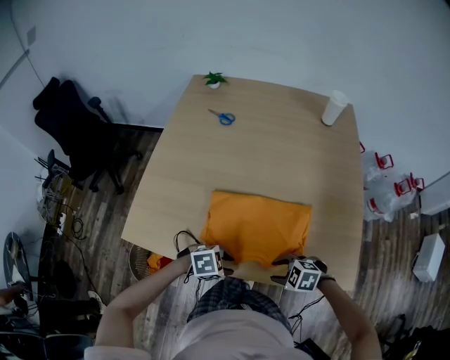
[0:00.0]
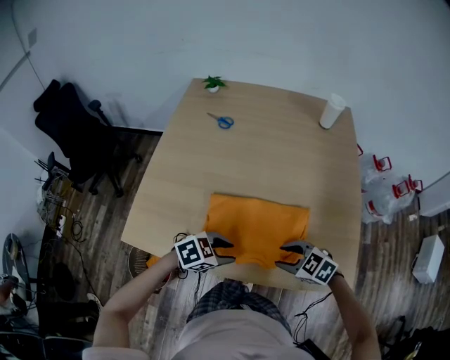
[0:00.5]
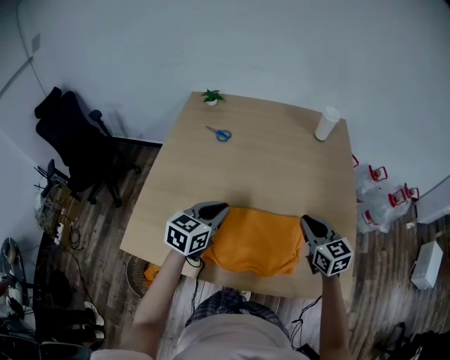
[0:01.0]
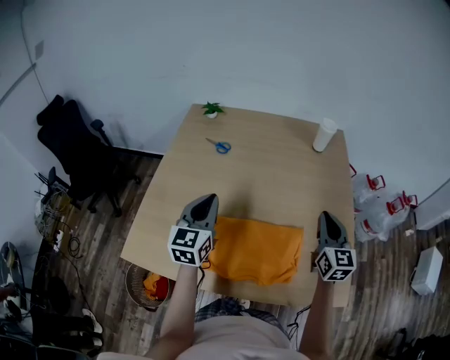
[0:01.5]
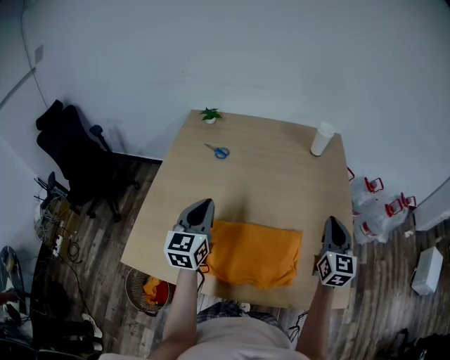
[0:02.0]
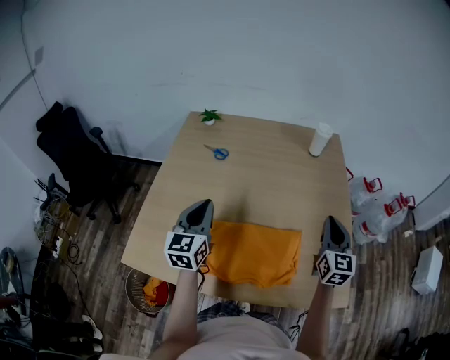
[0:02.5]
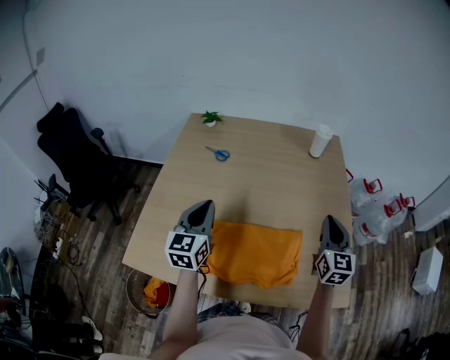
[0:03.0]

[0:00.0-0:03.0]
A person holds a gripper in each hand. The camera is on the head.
0:00.0 to 0:01.5: The left gripper moves upward, roughly 25 cm, points its fingers approximately 50 degrees further upward, and closes; the right gripper shifts by approximately 35 cm, tips its fingers upward by roughly 50 degrees, and closes its fingers.
0:01.5 to 0:03.0: The grippers stay close to where they were, moving slightly.

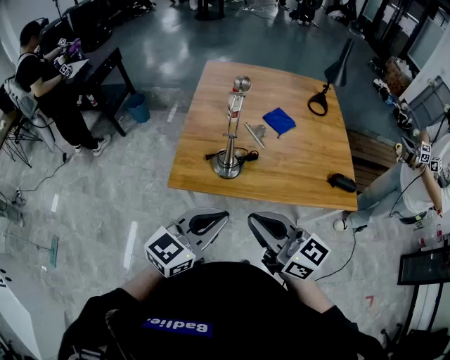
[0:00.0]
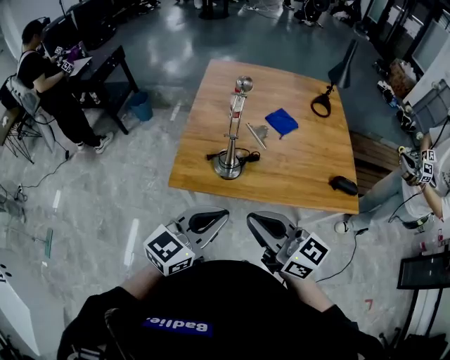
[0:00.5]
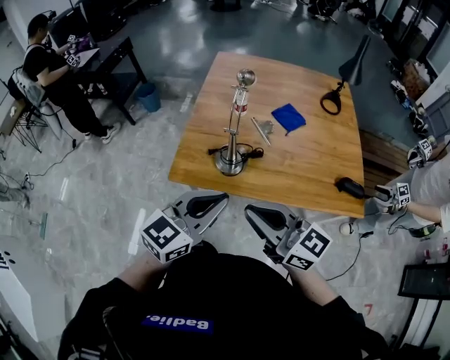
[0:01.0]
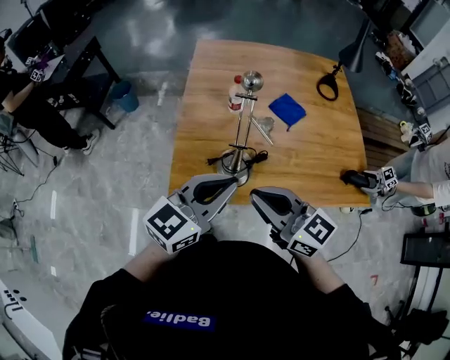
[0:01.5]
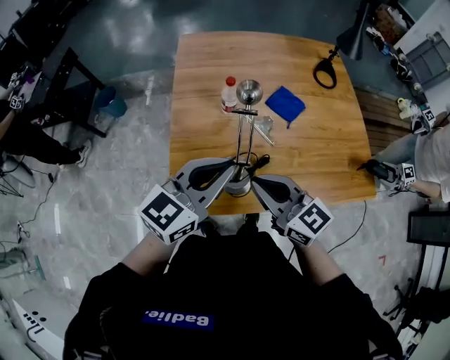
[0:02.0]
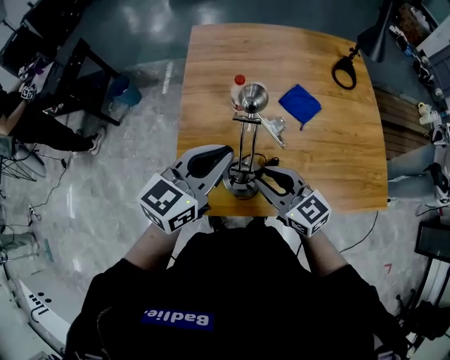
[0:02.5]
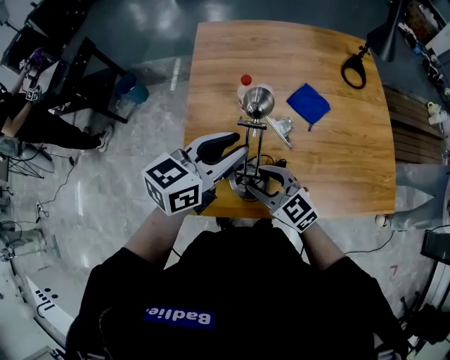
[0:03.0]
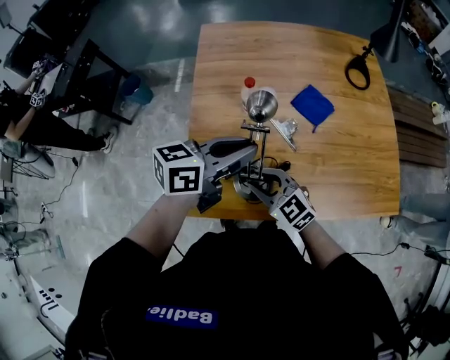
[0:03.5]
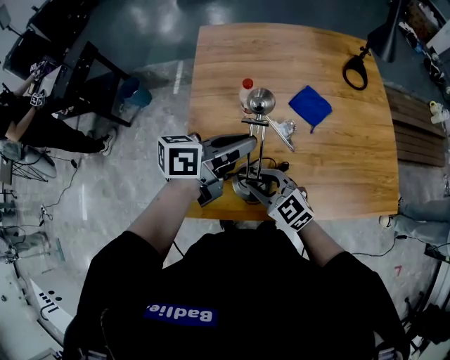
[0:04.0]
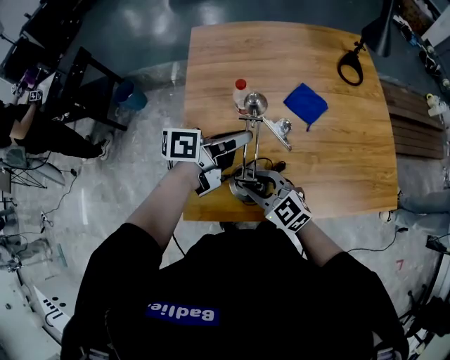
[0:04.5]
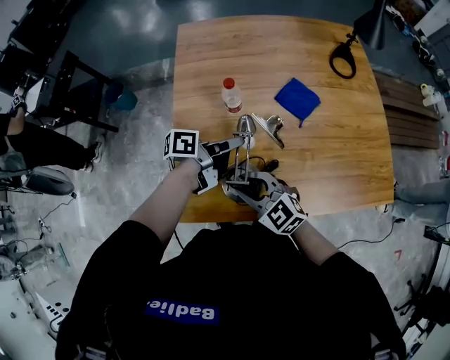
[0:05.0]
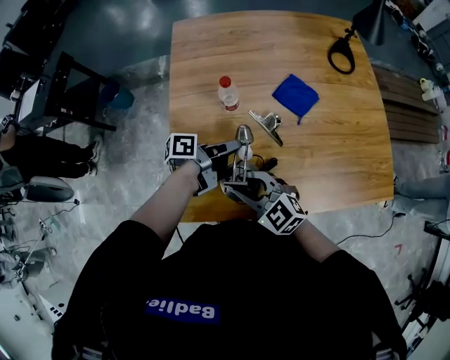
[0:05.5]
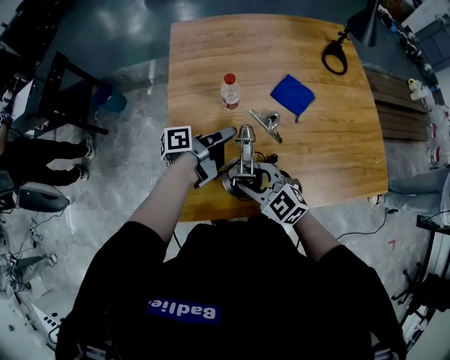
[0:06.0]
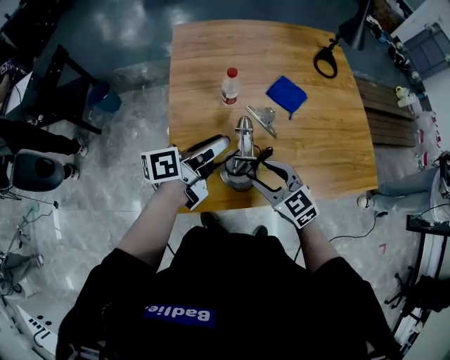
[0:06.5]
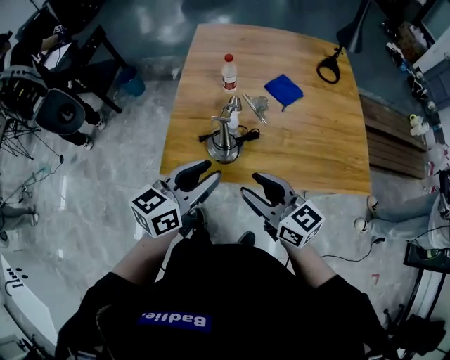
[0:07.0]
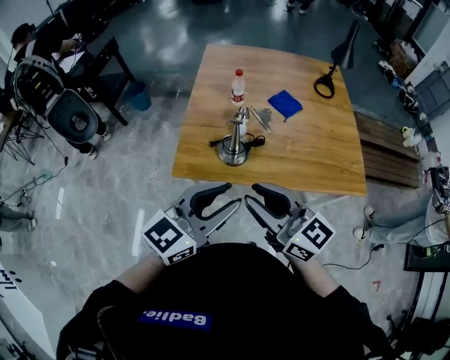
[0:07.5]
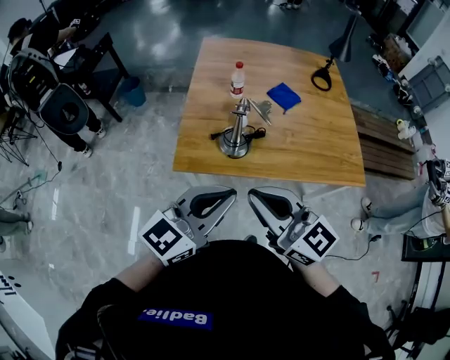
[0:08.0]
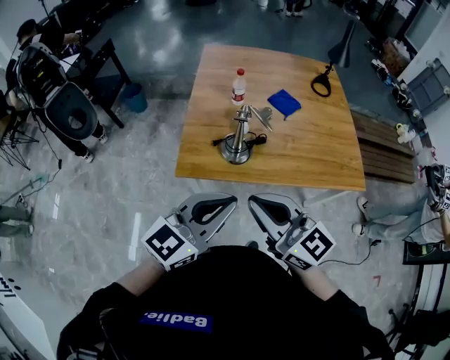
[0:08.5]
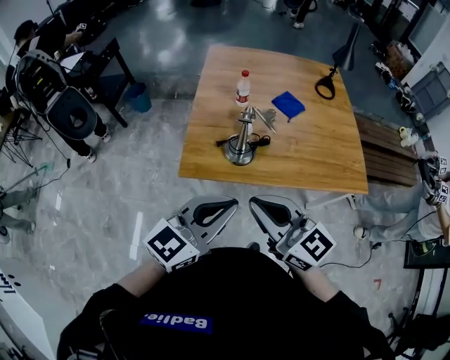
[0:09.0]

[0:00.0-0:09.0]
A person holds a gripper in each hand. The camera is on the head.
0:00.0 to 0:02.0: The two grippers go about 25 cm forward.
0:02.0 to 0:04.5: The right gripper travels downward by roughly 15 cm, turns by about 30 degrees, and opens its fingers; the left gripper goes roughly 15 cm forward and downward, and rotates around the line of its fingers by approximately 50 degrees, counterclockwise from behind.
0:04.5 to 0:07.0: The left gripper goes roughly 25 cm backward, turns by roughly 40 degrees, and opens up, while the right gripper travels backward, to the right and upward by roughly 25 cm, and turns by about 30 degrees.
0:07.0 to 0:09.0: The left gripper is displaced backward and upward by approximately 15 cm, swivels some 20 degrees, and closes its fingers; the right gripper heads backward, upward and to the left, covering approximately 20 cm, and closes up.

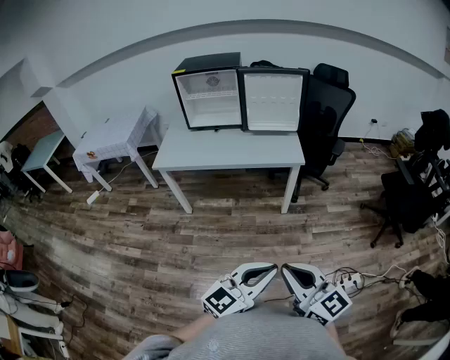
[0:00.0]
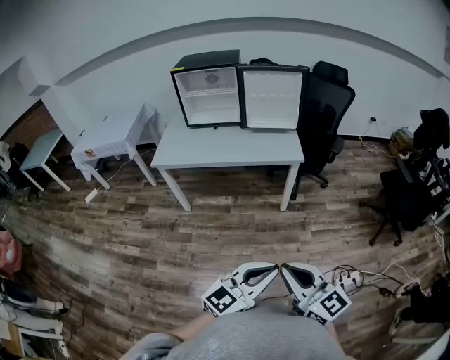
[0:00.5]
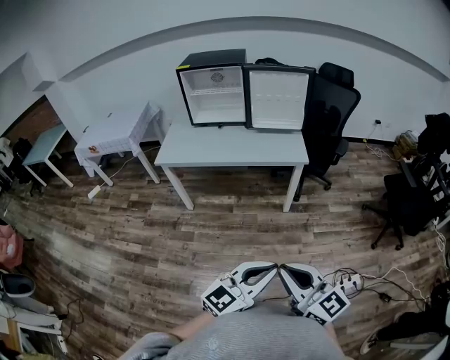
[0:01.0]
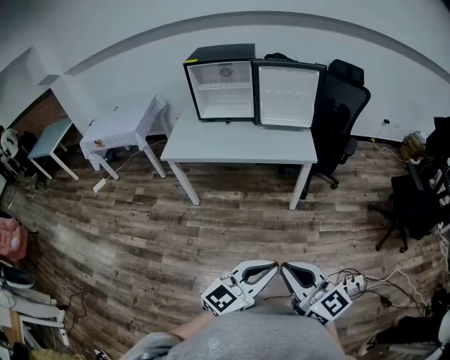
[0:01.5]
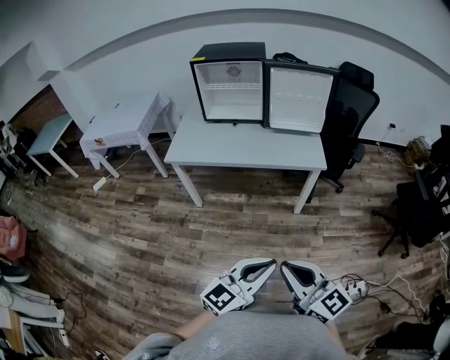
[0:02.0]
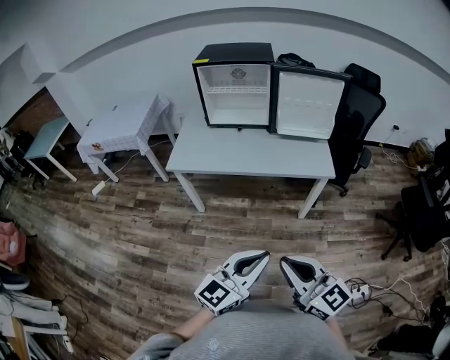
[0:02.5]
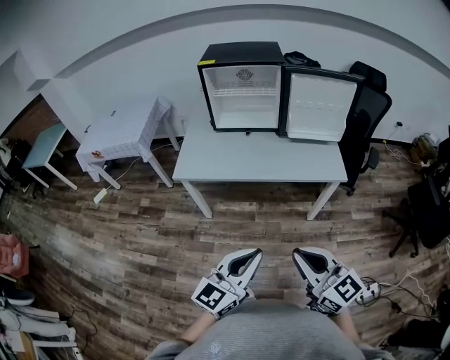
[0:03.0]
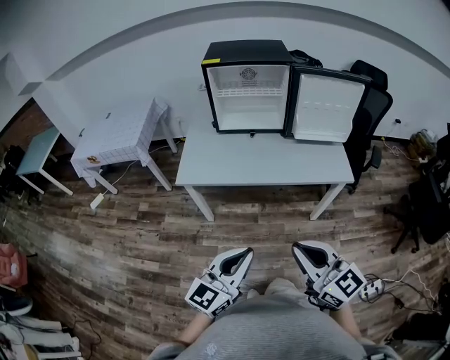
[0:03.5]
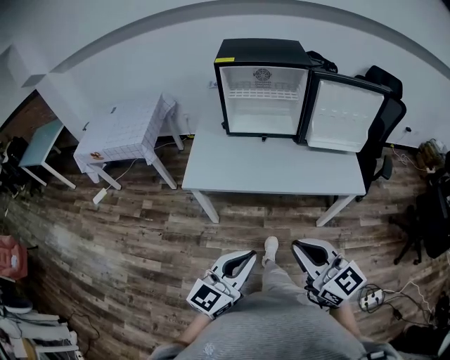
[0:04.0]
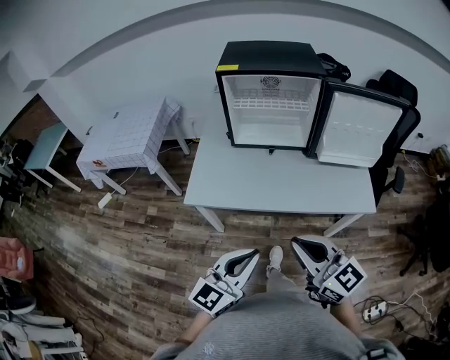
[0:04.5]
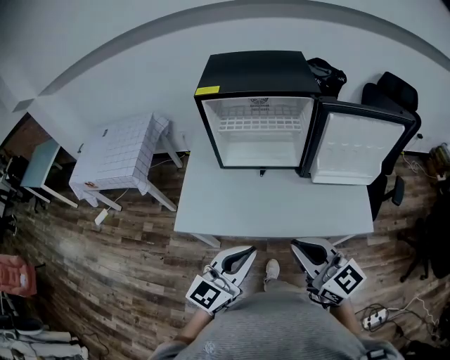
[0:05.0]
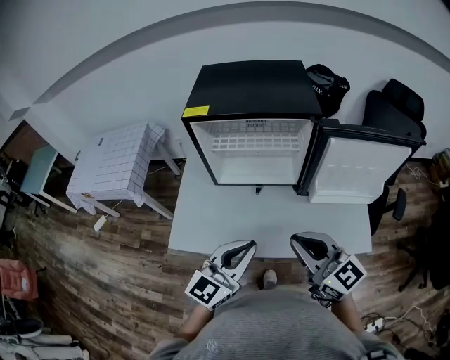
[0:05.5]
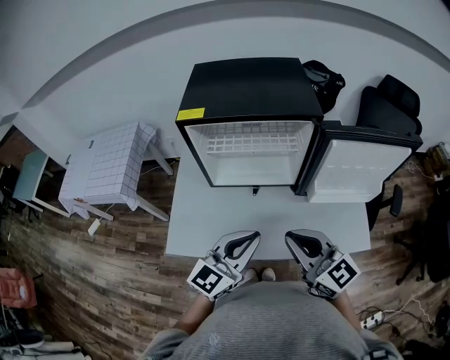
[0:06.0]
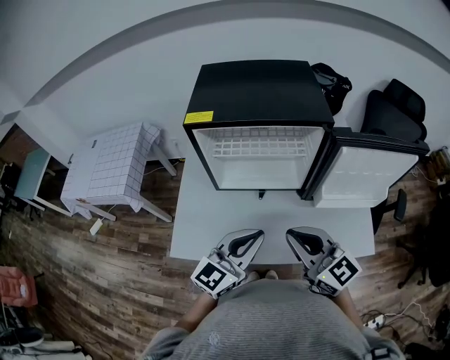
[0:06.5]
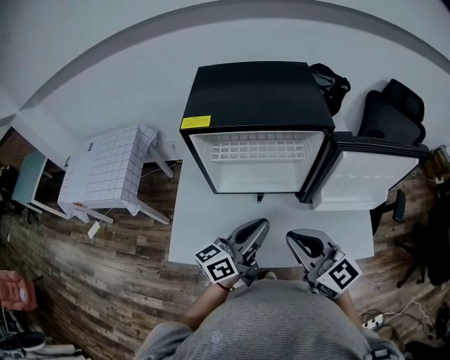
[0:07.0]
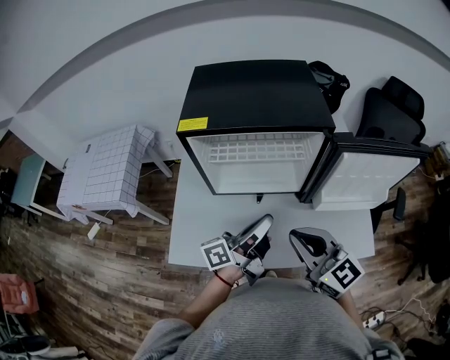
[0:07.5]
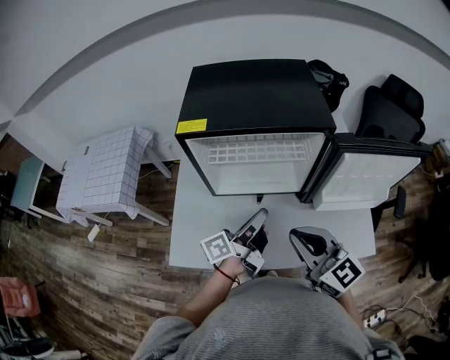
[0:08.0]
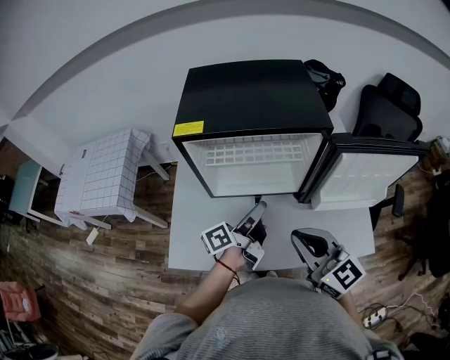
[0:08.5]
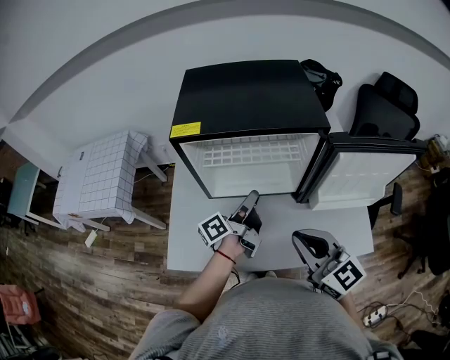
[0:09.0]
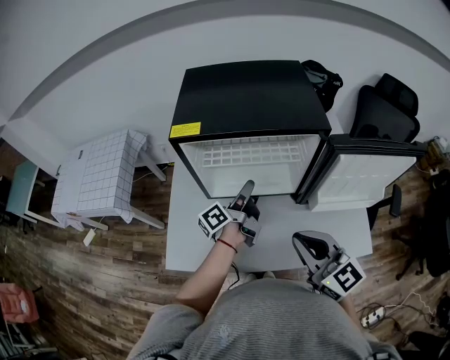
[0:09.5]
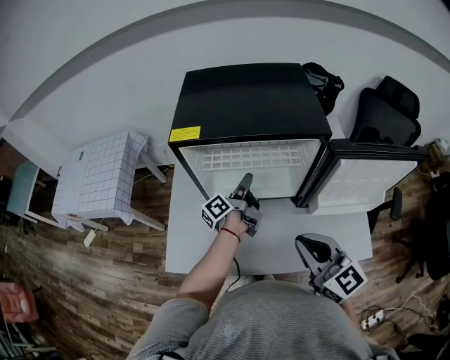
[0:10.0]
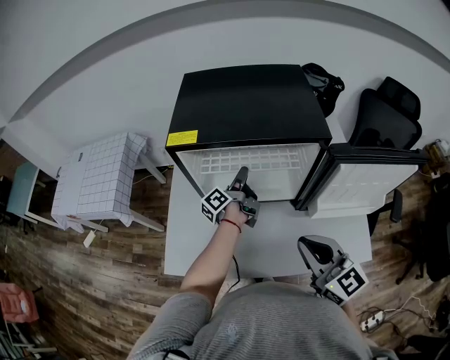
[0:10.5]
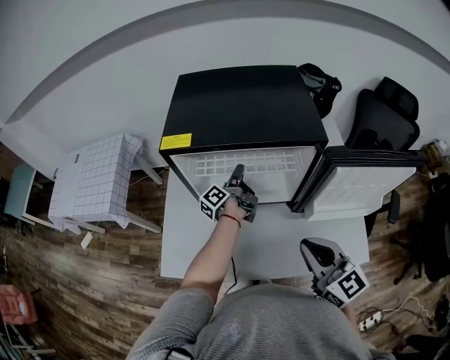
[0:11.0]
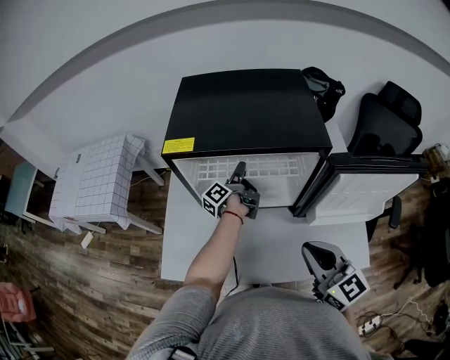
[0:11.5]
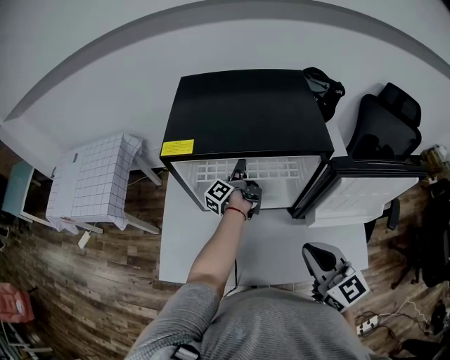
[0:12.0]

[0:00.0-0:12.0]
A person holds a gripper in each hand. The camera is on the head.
0:00.0 to 0:02.0: Both grippers travel together to the left and forward, approximately 10 cm.
0:02.0 to 0:04.0: The right gripper is displaced forward and to the left by approximately 35 cm; the left gripper goes approximately 35 cm to the left and forward.
0:04.0 to 0:06.0: Both grippers travel together forward, approximately 35 cm.
0:06.0 to 0:08.0: The left gripper shifts some 10 cm forward, and rotates around the line of its fingers by some 80 degrees, counterclockwise from behind, while the right gripper heads forward, covering approximately 5 cm.
0:08.0 to 0:10.0: The left gripper travels forward and downward by about 15 cm, and opens.
0:10.0 to 0:12.0: The right gripper ends up about 5 cm from where it was, while the left gripper is displaced forward by about 10 cm.

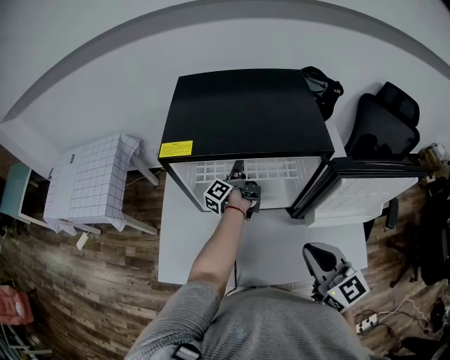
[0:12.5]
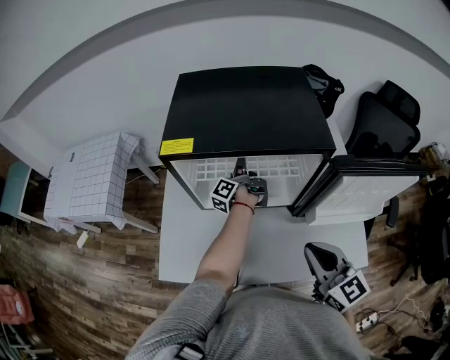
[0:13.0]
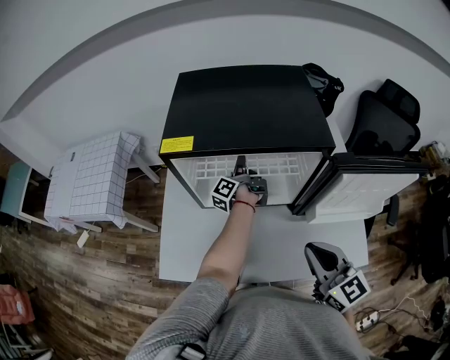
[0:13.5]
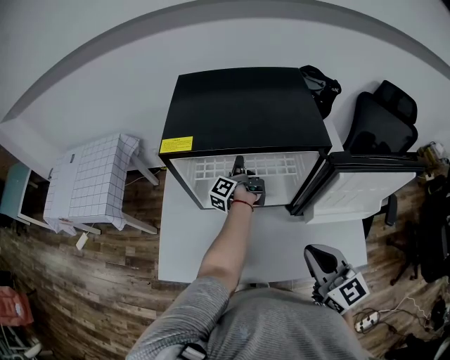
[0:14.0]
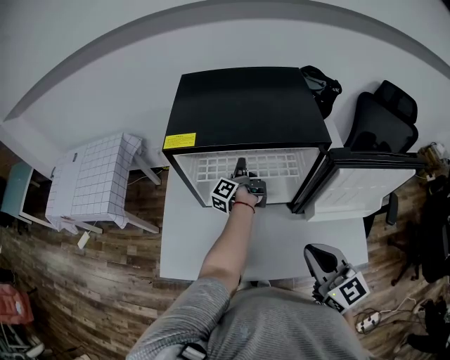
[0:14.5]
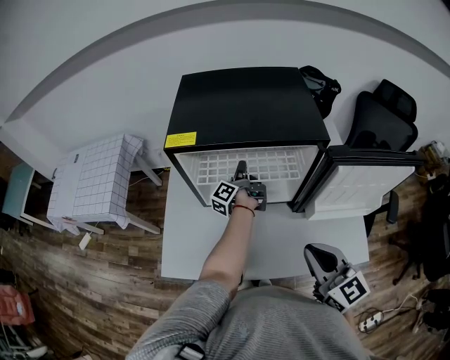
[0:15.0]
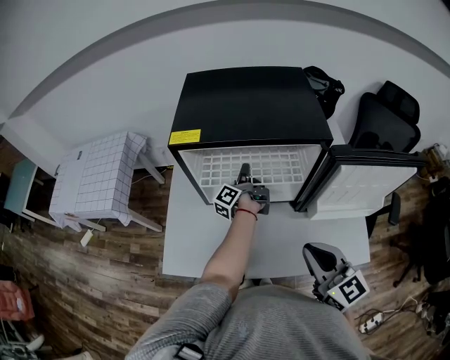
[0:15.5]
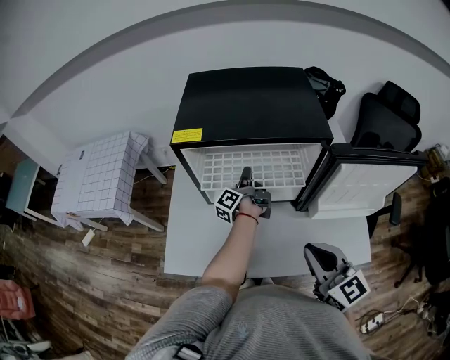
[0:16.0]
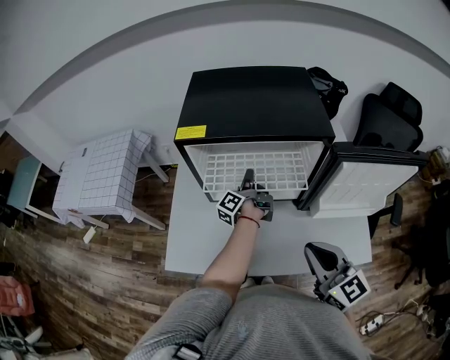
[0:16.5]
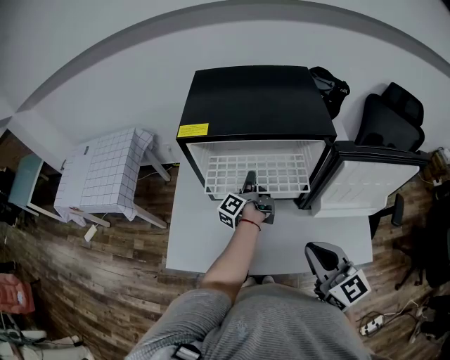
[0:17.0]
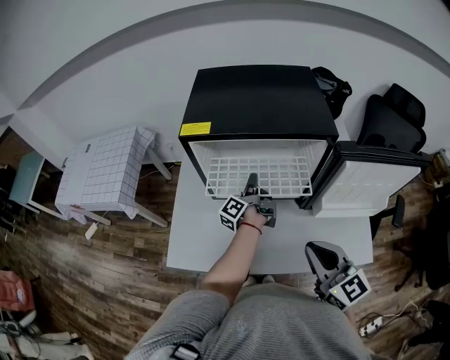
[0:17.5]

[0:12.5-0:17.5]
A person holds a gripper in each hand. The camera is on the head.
0:12.5 to 0:15.0: The left gripper closes its fingers.
0:15.0 to 0:17.5: The left gripper moves backward, approximately 10 cm.
